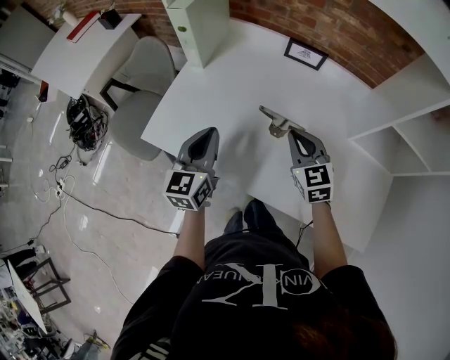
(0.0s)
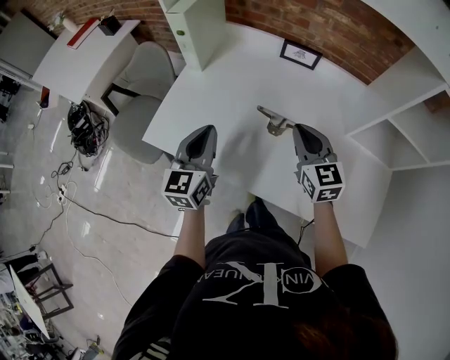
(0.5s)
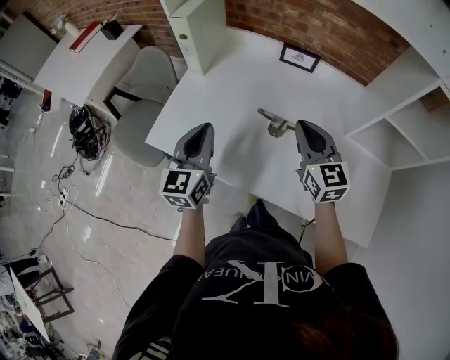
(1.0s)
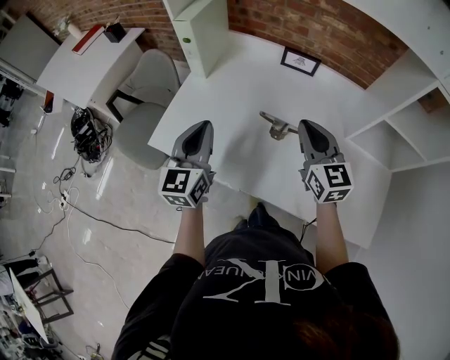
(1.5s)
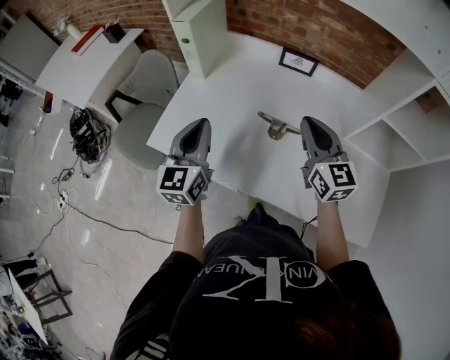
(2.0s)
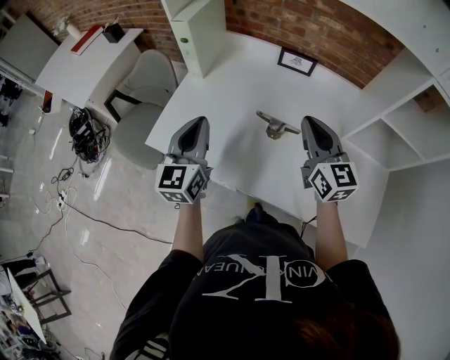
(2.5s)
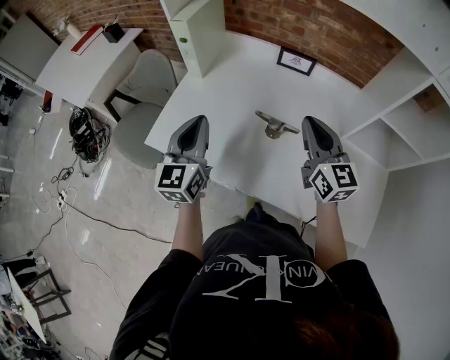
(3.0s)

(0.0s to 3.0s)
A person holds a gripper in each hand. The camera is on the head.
0.0s - 1.5s: The right gripper moves upward, about 10 cm. The left gripper heads upward, covering about 5 cm.
1.5s - 3.0s: There are only small adjustments of the grippers.

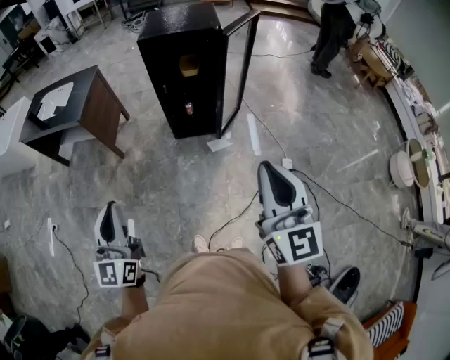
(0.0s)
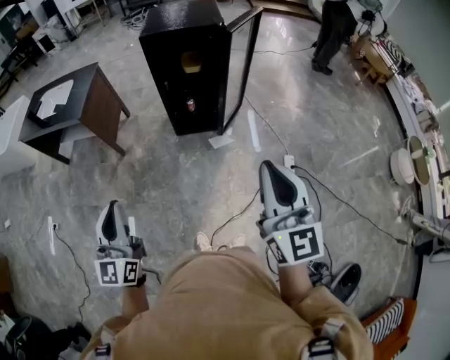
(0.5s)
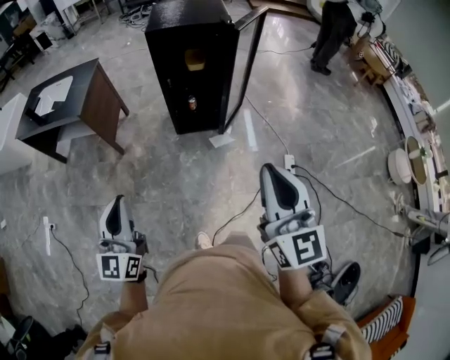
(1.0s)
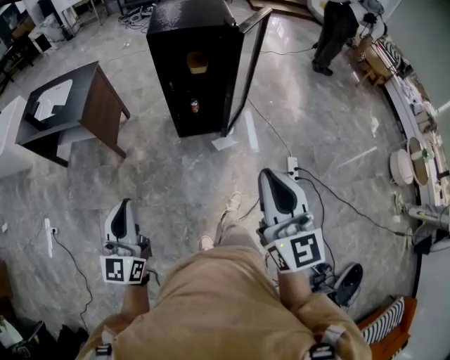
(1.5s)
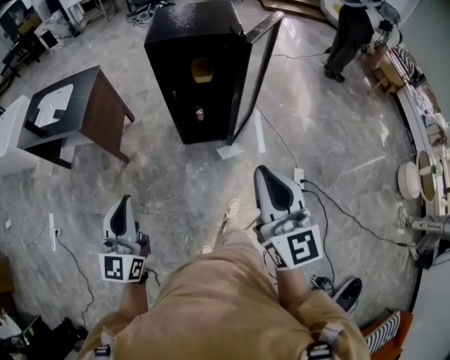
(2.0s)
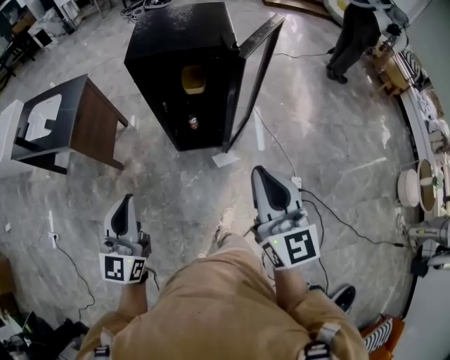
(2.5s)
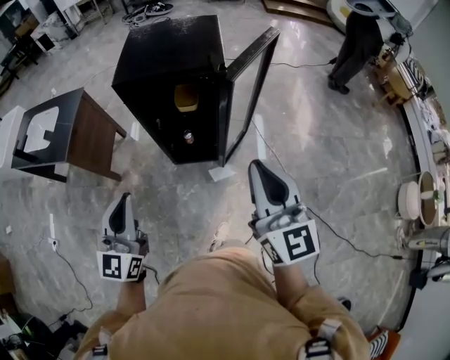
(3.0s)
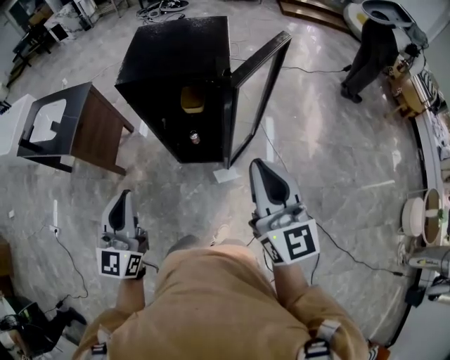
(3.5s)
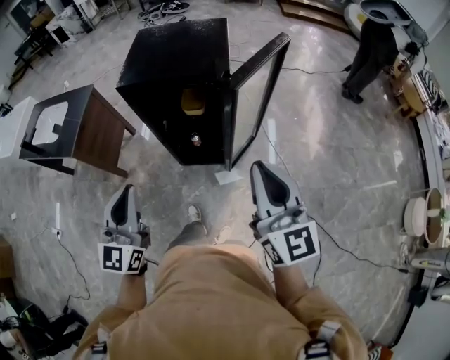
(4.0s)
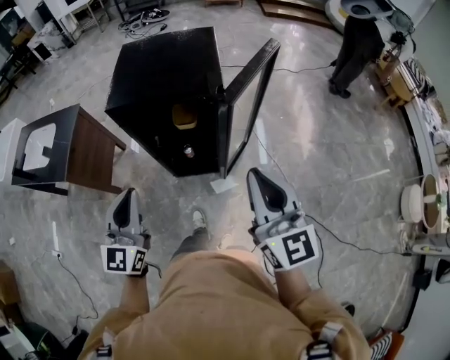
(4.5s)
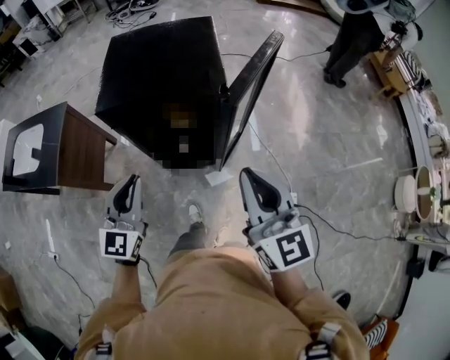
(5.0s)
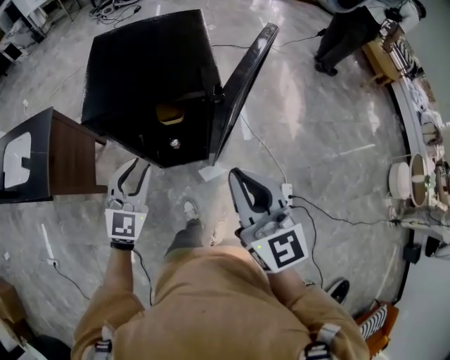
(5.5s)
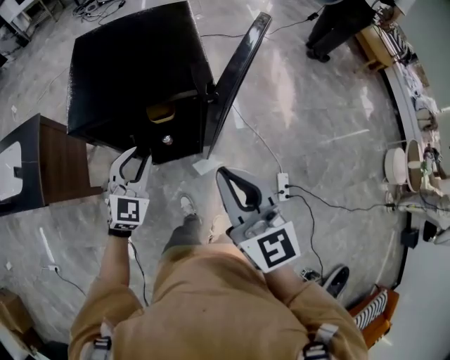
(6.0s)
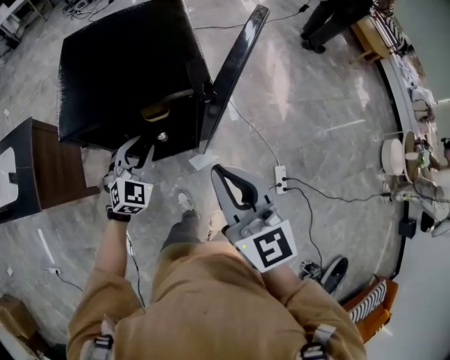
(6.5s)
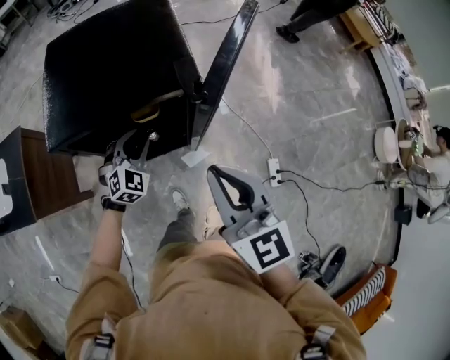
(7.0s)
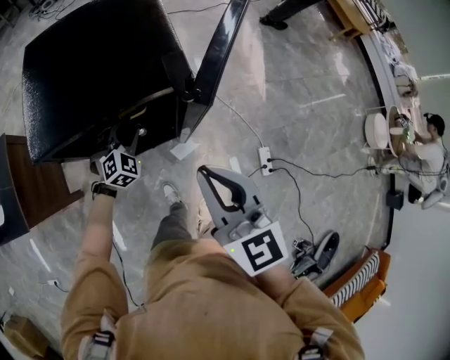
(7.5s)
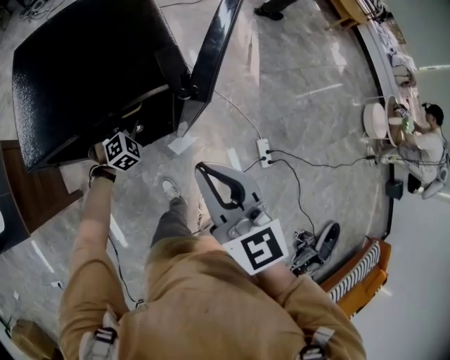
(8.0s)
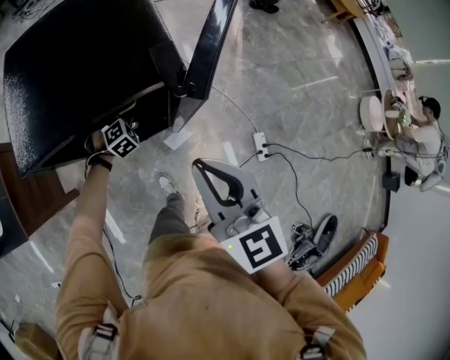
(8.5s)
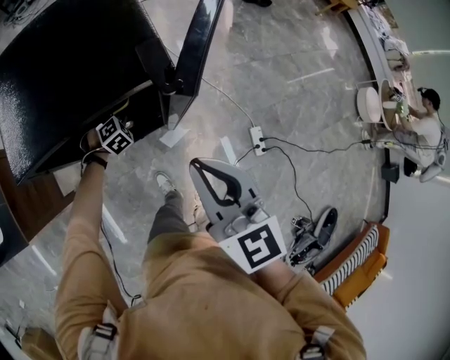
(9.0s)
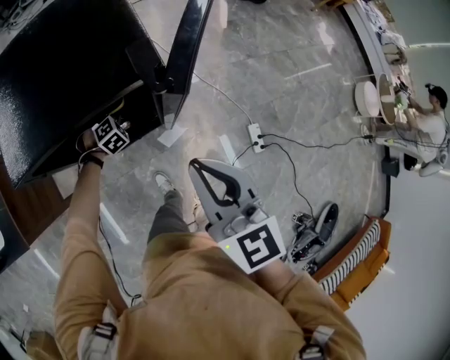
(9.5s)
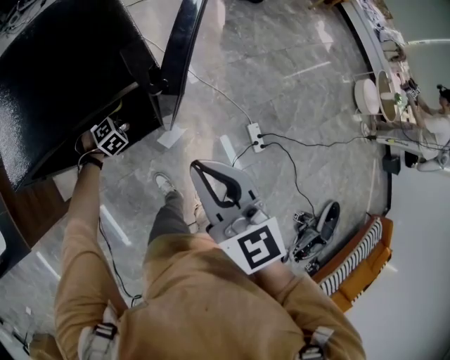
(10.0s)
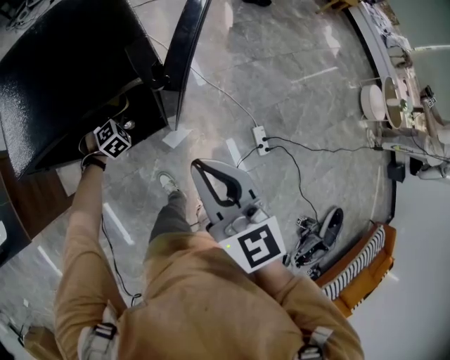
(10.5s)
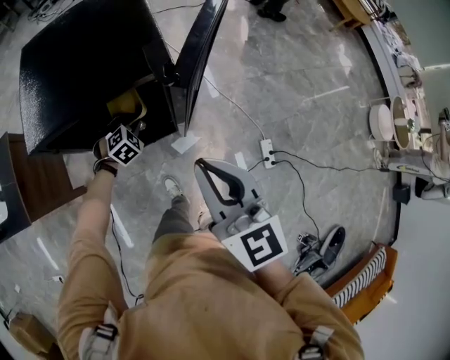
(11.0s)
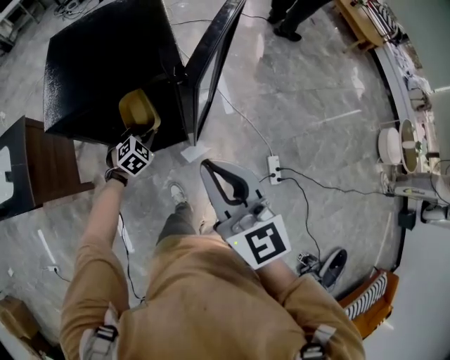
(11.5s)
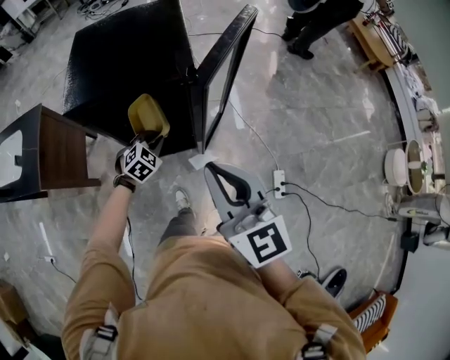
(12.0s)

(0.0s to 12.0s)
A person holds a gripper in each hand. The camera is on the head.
0.0s - 2.0s: The two grippers go about 15 cm forward.
2.0s - 4.0s: Both grippers move forward and to the right, roughly 30 cm.
4.0s - 6.0s: The left gripper goes some 35 cm forward and downward, swivels approximately 40 degrees, and opens up, while the right gripper moves forward and to the left, roughly 20 cm.
6.0s - 8.0s: The right gripper heads downward and forward, covering roughly 10 cm. Meanwhile the left gripper travels downward and forward by approximately 25 cm, and swivels some 40 degrees.
8.0s - 10.0s: The left gripper goes approximately 5 cm downward, and closes its fingers.
10.0s - 12.0s: The right gripper shifts about 10 cm backward and upward, and turns by approximately 20 degrees. Meanwhile the left gripper travels backward and upward by roughly 20 cm, and turns by approximately 30 degrees.

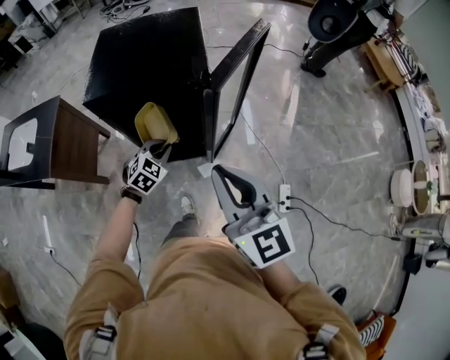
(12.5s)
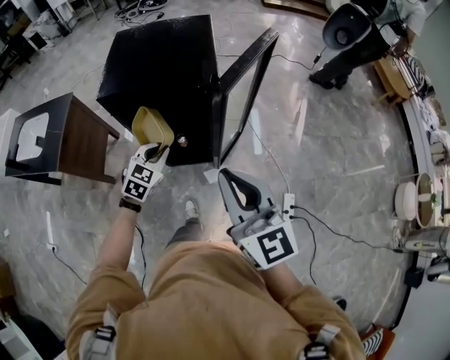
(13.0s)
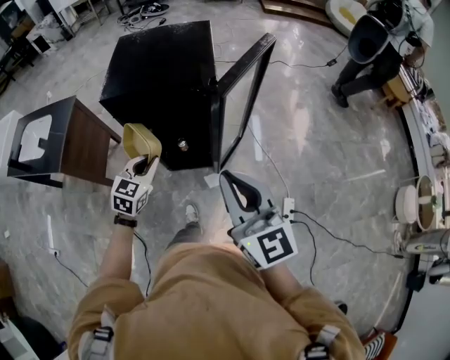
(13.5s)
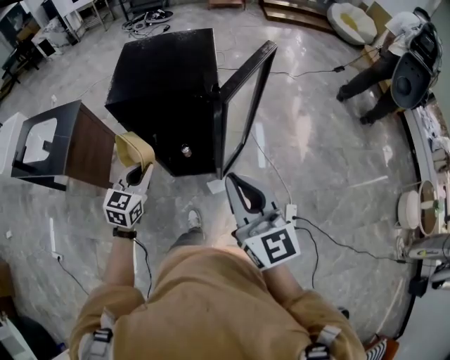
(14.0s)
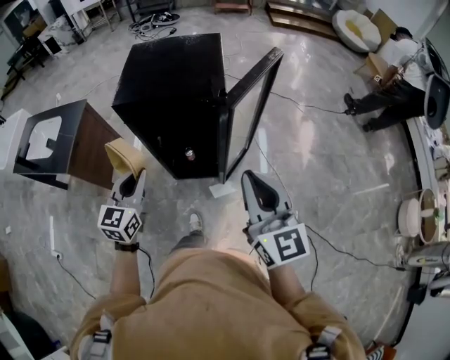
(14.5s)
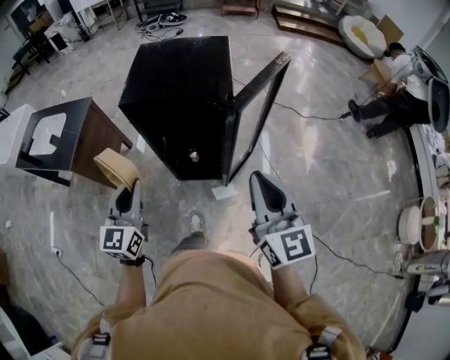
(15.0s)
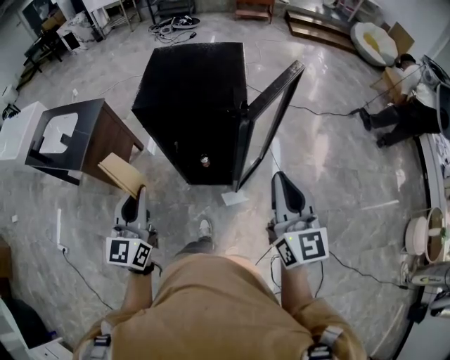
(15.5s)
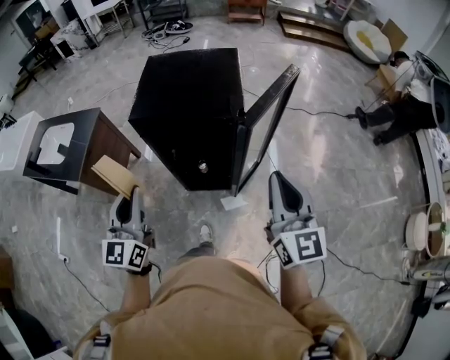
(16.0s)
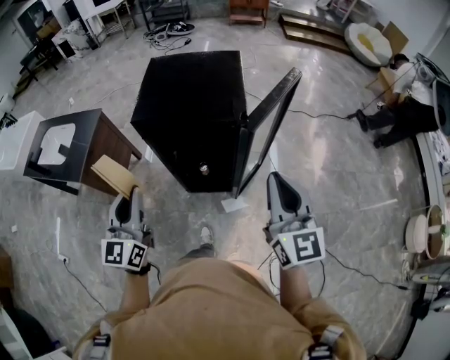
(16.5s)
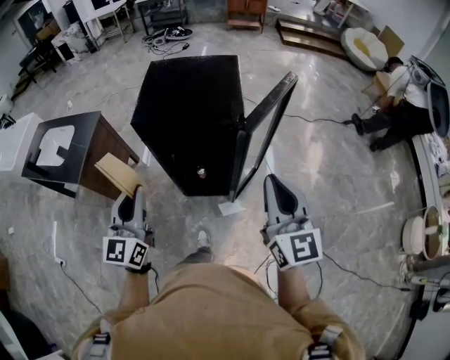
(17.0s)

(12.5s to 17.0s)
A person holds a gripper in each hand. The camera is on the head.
12.5s - 14.5s: The left gripper heads upward, backward and to the left, covering roughly 25 cm, and tips its fingers upward by roughly 30 degrees, while the right gripper travels to the right by roughly 5 cm.
14.5s - 17.0s: The right gripper ends up some 5 cm from where it was, while the left gripper travels upward by about 10 cm, and rotates about 20 degrees.

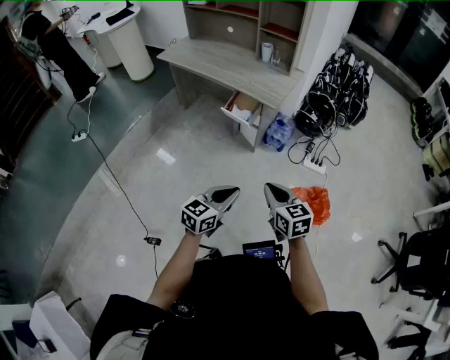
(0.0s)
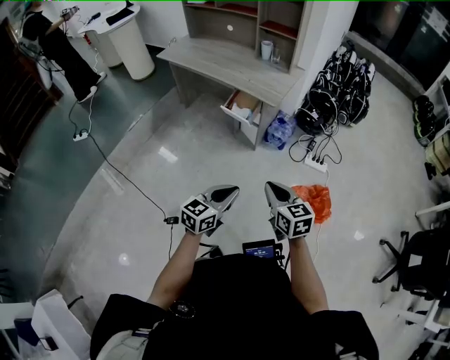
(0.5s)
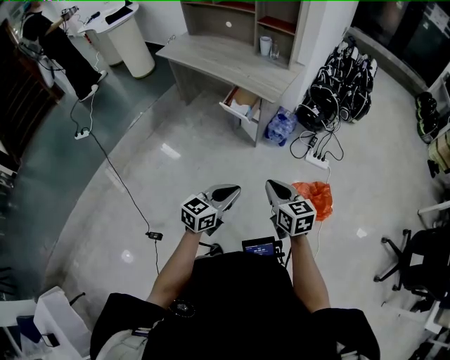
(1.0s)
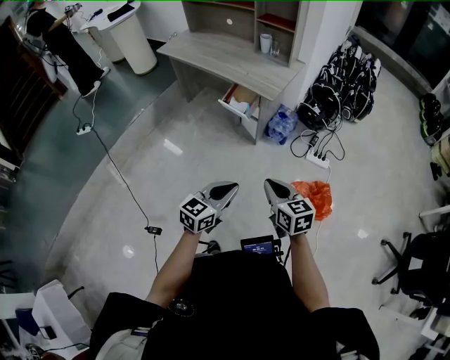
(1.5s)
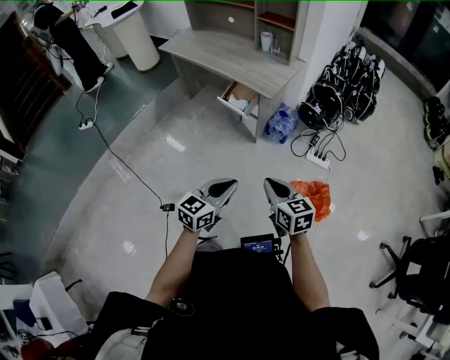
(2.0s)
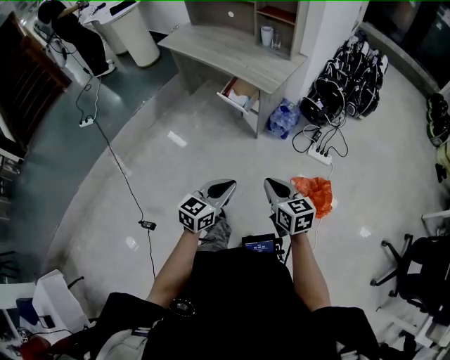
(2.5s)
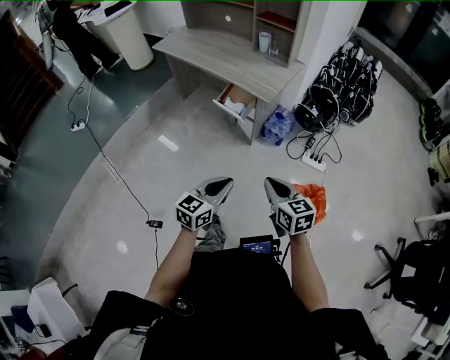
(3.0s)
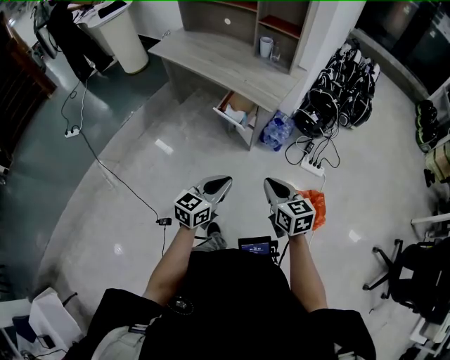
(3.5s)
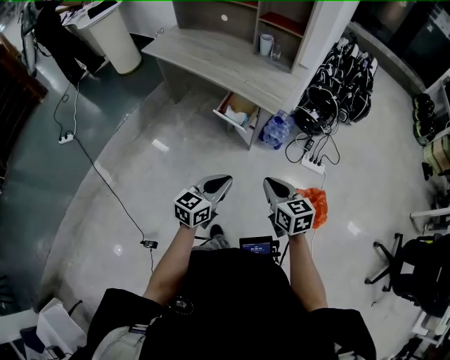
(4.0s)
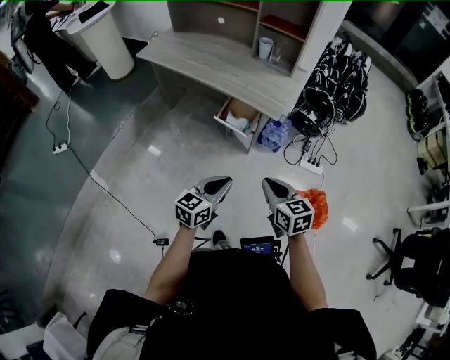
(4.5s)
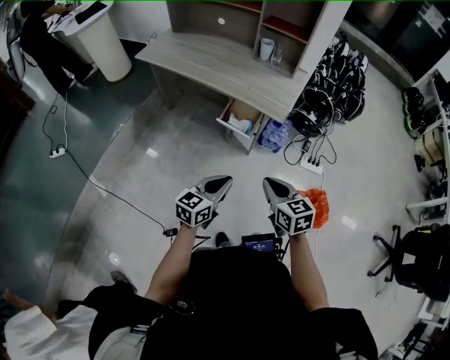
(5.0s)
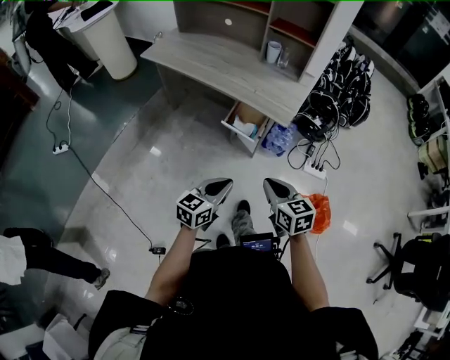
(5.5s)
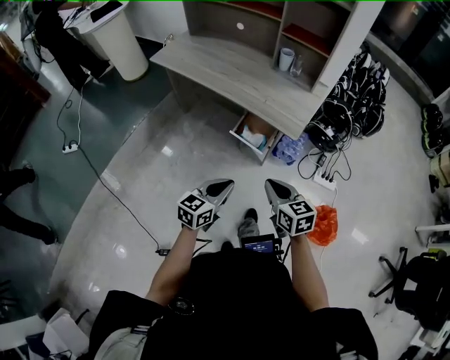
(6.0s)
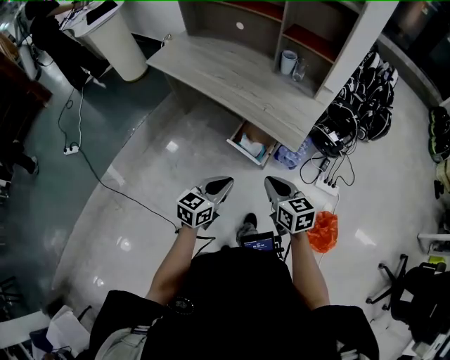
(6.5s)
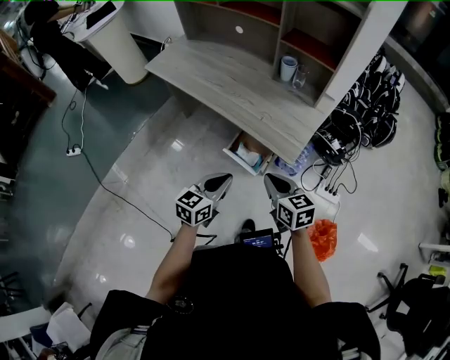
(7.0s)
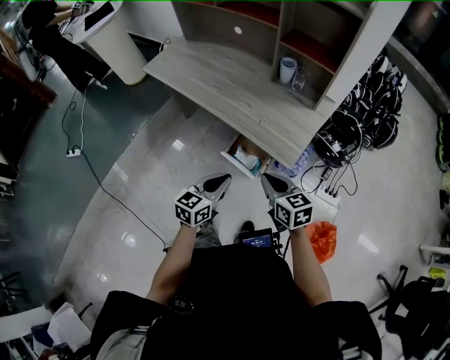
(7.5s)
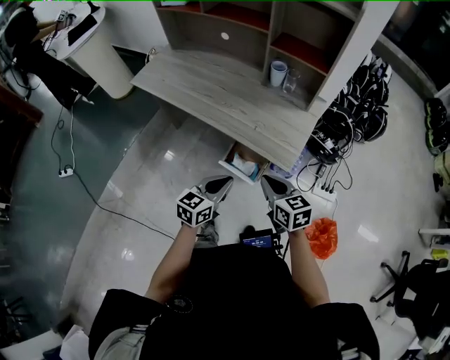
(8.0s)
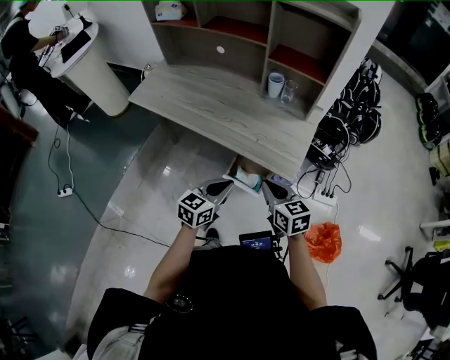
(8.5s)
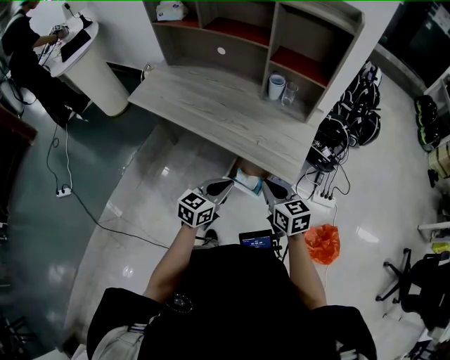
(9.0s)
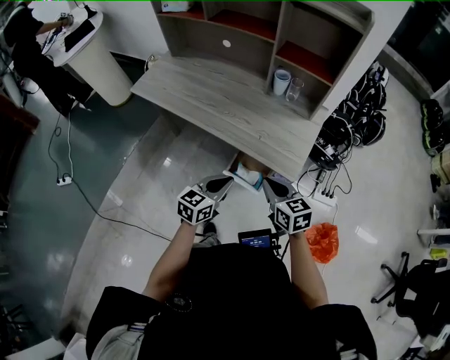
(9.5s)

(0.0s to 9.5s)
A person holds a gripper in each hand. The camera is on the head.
0.0s - 2.0s: The two grippers go some 10 cm to the right.
2.0s - 4.0s: Both grippers move forward and to the left, roughly 15 cm.
4.0s - 5.5s: The grippers both shift to the left and forward by approximately 10 cm.
5.5s - 7.5s: Both grippers travel together forward, roughly 25 cm.
7.5s - 9.5s: The right gripper changes place by roughly 5 cm; the left gripper travels forward by roughly 5 cm.
